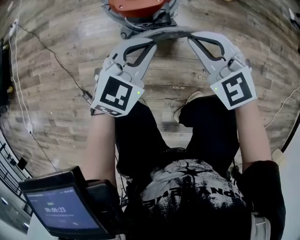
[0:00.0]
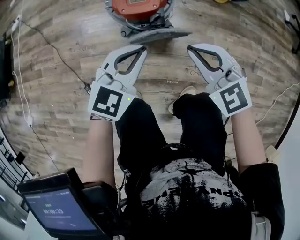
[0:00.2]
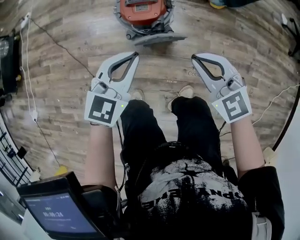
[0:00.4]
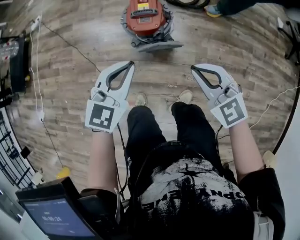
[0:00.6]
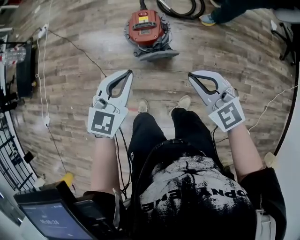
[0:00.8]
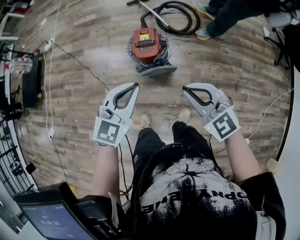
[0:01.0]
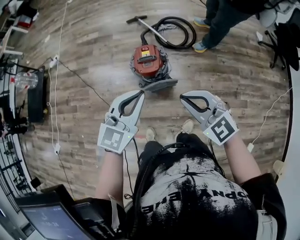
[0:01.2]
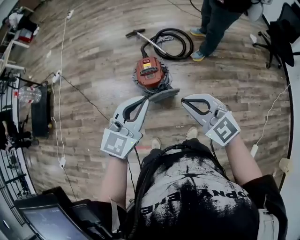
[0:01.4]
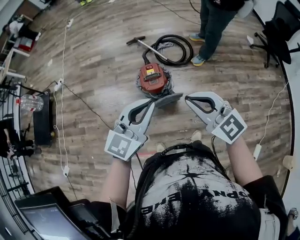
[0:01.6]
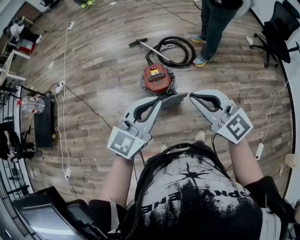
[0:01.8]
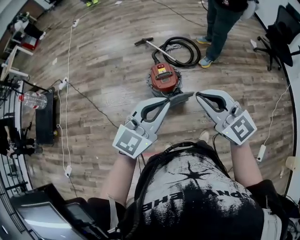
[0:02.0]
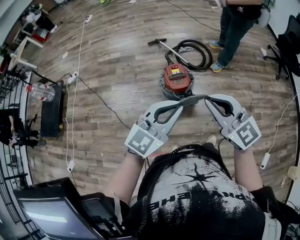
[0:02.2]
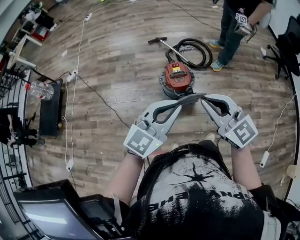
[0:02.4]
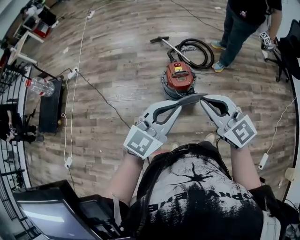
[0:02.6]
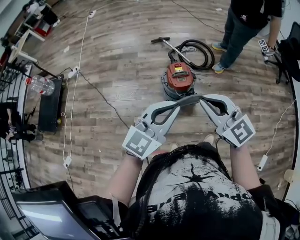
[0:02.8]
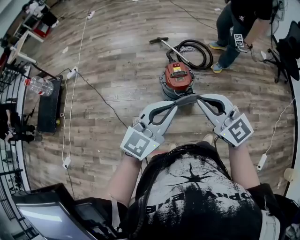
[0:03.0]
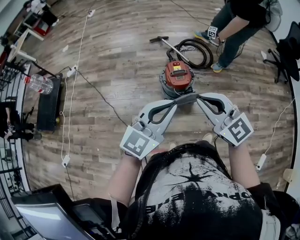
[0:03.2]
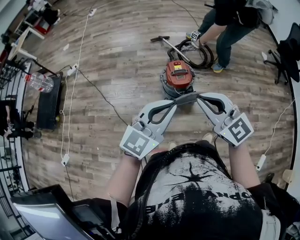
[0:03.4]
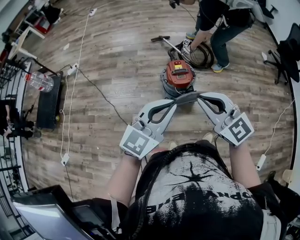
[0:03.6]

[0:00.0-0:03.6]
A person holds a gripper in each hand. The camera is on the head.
0.0 to 1.8 s: Both grippers move upward, about 60 cm. The right gripper tips its fingers upward by some 30 degrees. Meanwhile the left gripper points its fingers about 30 degrees further upward.
1.8 to 3.6 s: The grippers both shift to the left and backward by some 15 cm.

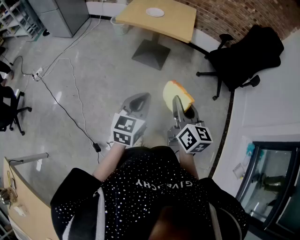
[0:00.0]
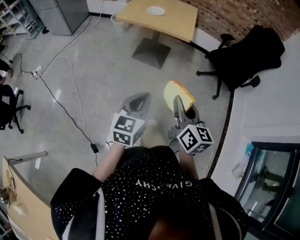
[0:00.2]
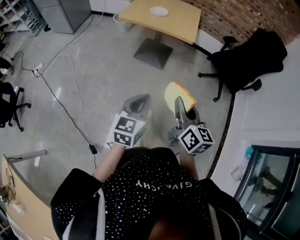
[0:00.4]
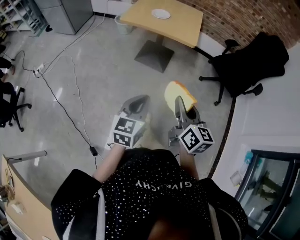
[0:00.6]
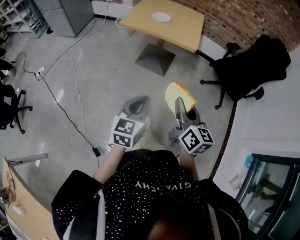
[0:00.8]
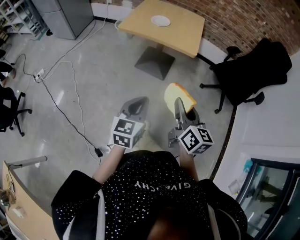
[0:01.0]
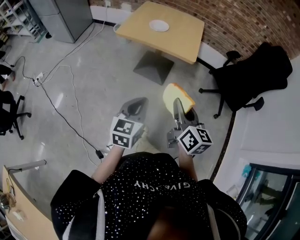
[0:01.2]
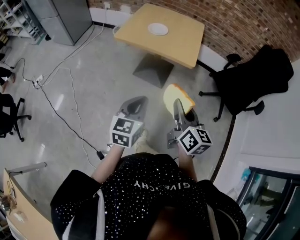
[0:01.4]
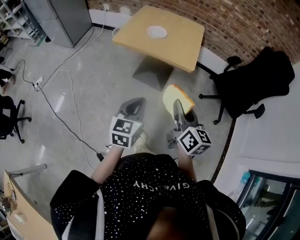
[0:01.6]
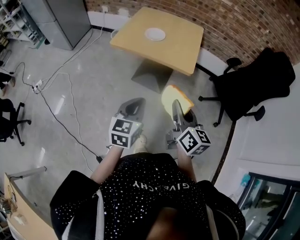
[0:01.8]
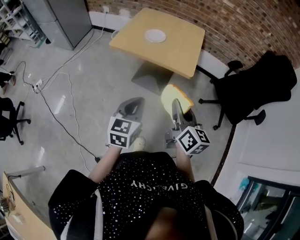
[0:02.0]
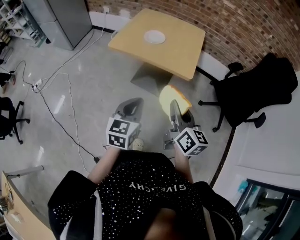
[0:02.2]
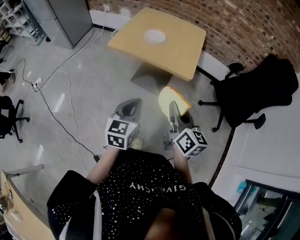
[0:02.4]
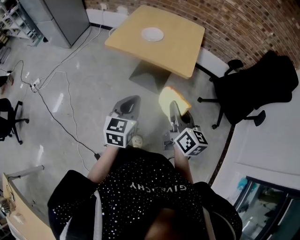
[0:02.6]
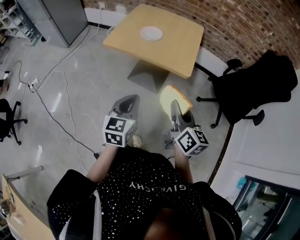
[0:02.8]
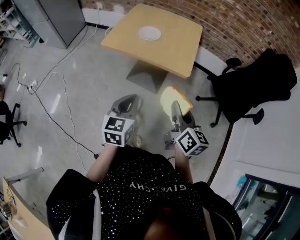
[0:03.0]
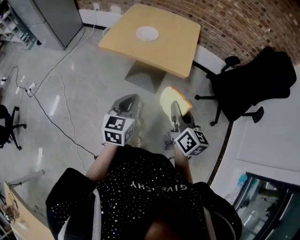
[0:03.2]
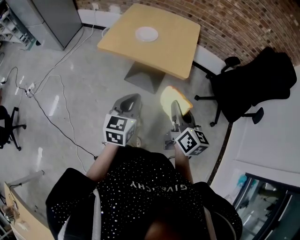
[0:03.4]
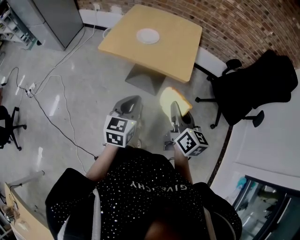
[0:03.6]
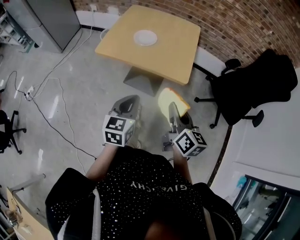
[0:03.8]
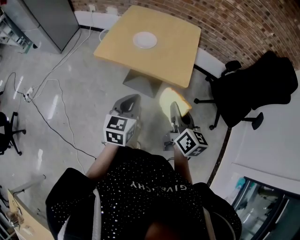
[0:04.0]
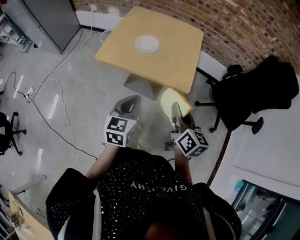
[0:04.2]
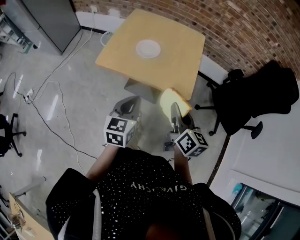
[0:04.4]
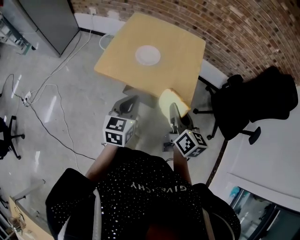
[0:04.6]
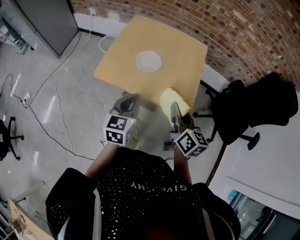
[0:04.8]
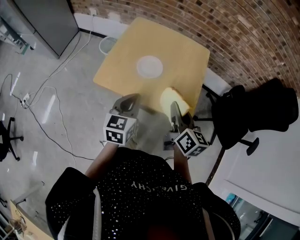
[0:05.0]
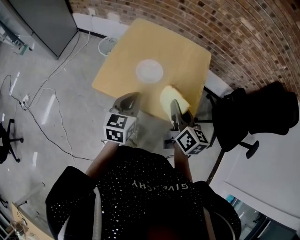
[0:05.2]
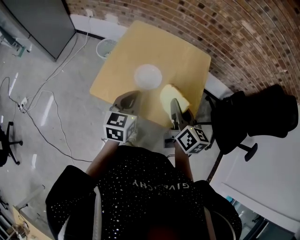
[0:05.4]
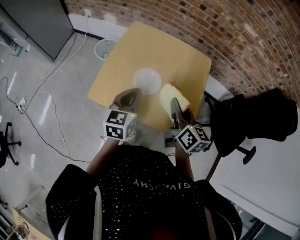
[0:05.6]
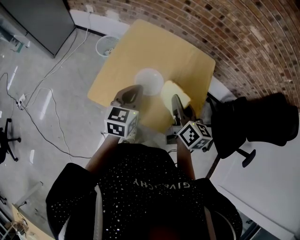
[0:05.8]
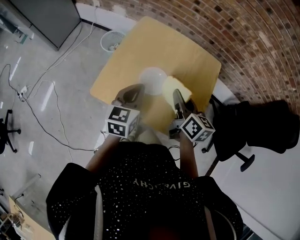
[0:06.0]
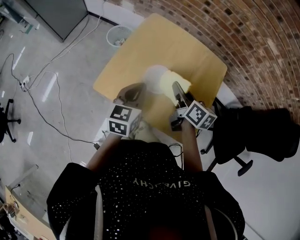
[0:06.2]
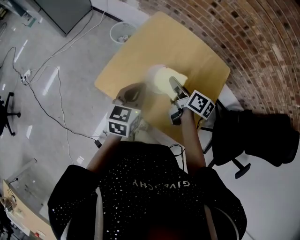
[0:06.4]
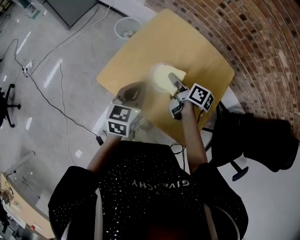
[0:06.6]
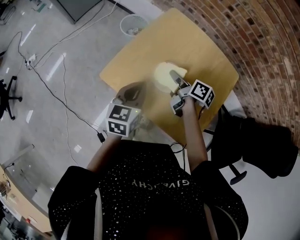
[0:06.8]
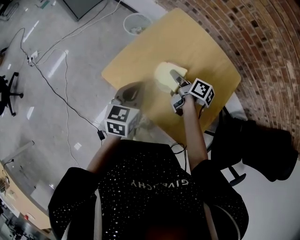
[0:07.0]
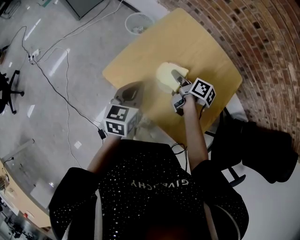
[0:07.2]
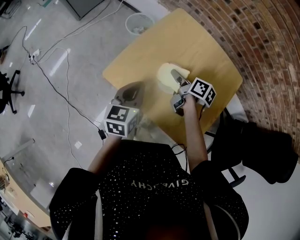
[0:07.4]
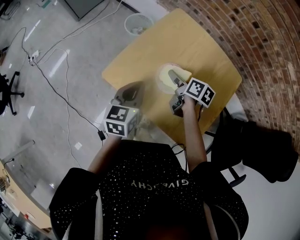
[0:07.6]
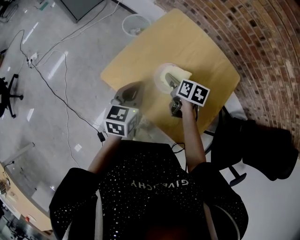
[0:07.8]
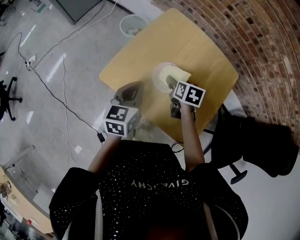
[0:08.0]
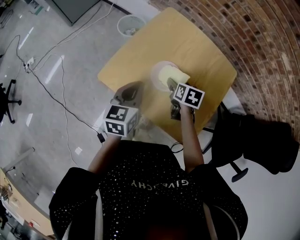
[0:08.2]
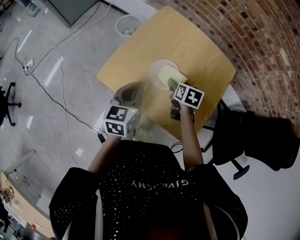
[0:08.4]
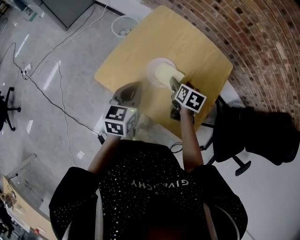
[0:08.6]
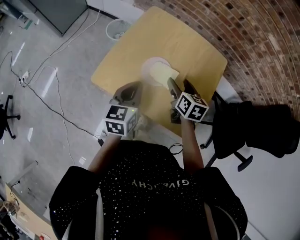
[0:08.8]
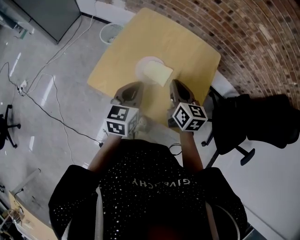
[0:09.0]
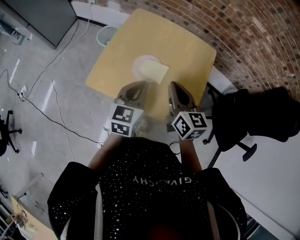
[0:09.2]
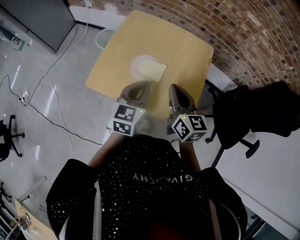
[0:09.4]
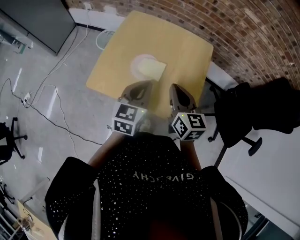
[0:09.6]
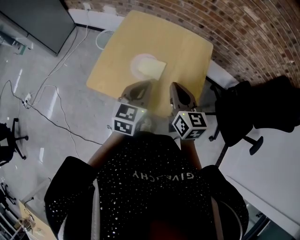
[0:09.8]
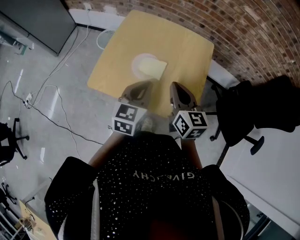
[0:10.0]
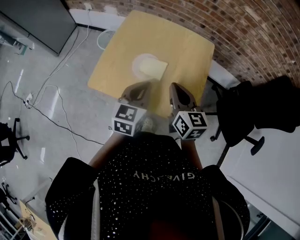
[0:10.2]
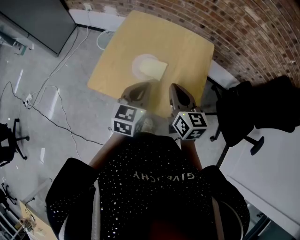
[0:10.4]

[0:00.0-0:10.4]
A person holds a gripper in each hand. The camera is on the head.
0.0 to 1.4 s: The grippers both shift forward by roughly 20 cm.
1.4 to 3.0 s: Both grippers travel together forward, approximately 10 cm.
3.0 to 4.4 s: Both grippers move forward, about 15 cm.
4.4 to 6.0 s: Both grippers travel together forward, approximately 30 cm.
6.0 to 7.4 s: The left gripper is displaced to the left by roughly 5 cm. Meanwhile the right gripper travels downward, forward and to the left by approximately 20 cm, and rotates approximately 40 degrees.
7.4 to 9.0 s: The right gripper is displaced backward, upward and to the right by about 15 cm, changes its angle by about 50 degrees, and opens, then closes again, while the left gripper goes about 5 cm to the right.
9.0 to 10.4 s: The left gripper goes approximately 5 cm to the right; the right gripper travels backward by roughly 5 cm.

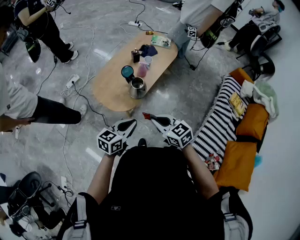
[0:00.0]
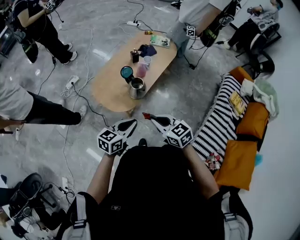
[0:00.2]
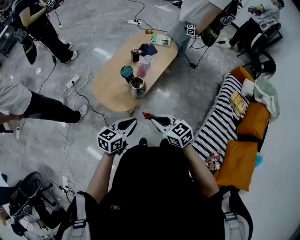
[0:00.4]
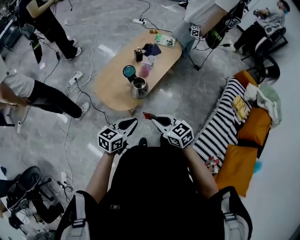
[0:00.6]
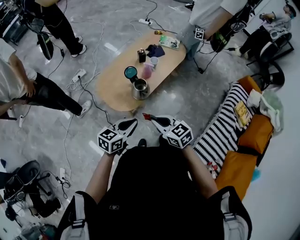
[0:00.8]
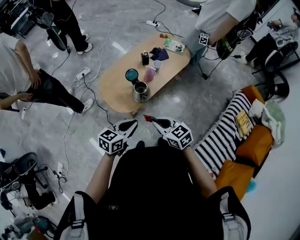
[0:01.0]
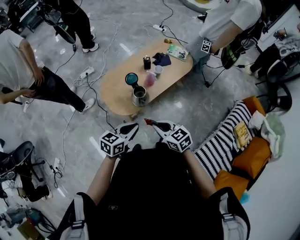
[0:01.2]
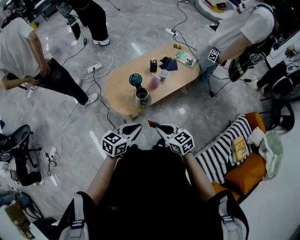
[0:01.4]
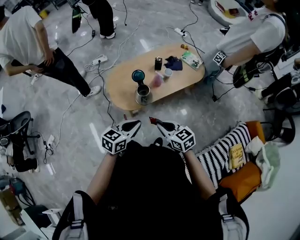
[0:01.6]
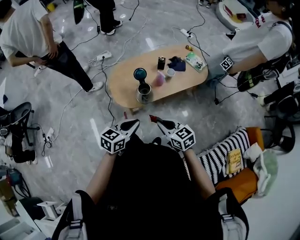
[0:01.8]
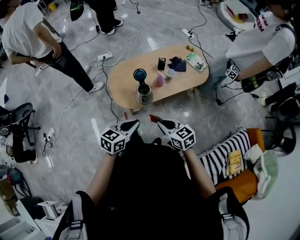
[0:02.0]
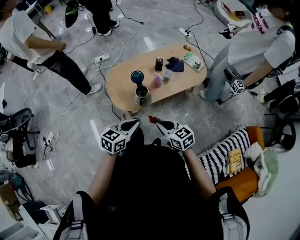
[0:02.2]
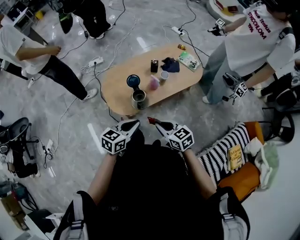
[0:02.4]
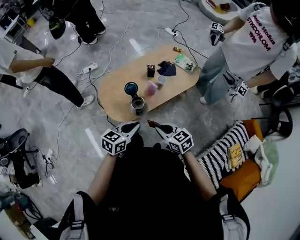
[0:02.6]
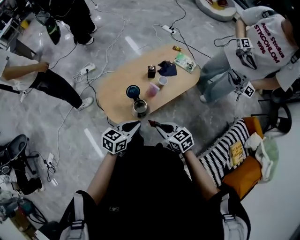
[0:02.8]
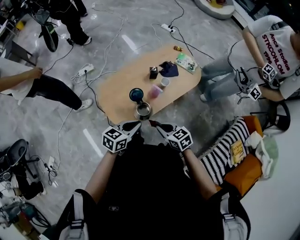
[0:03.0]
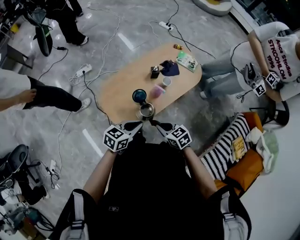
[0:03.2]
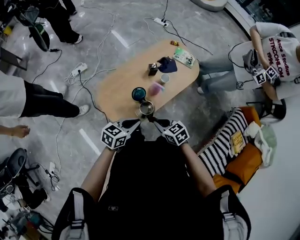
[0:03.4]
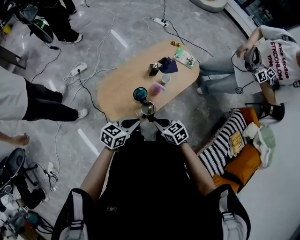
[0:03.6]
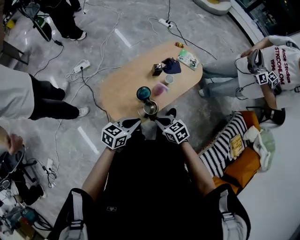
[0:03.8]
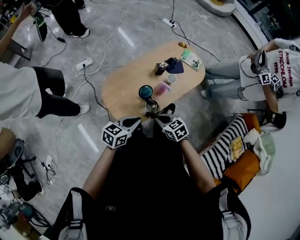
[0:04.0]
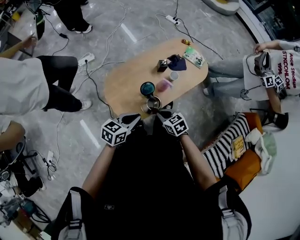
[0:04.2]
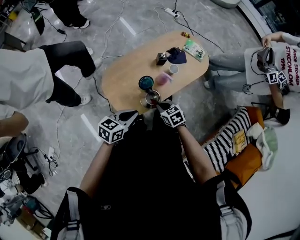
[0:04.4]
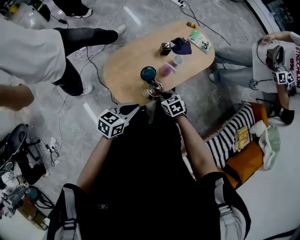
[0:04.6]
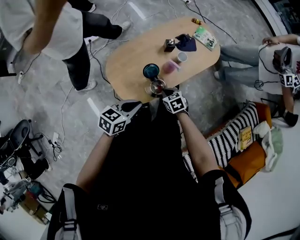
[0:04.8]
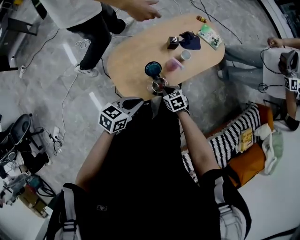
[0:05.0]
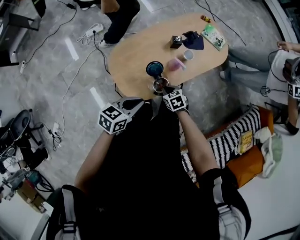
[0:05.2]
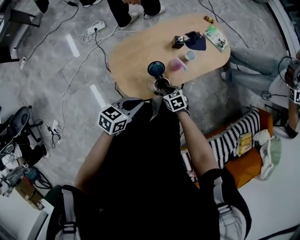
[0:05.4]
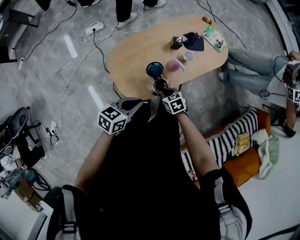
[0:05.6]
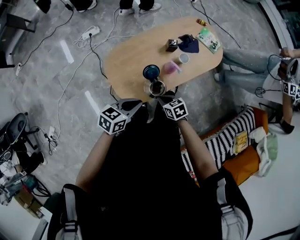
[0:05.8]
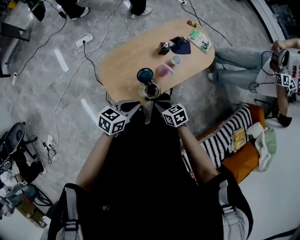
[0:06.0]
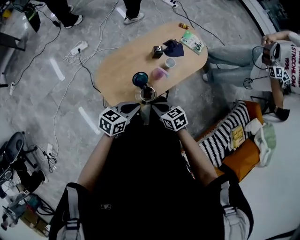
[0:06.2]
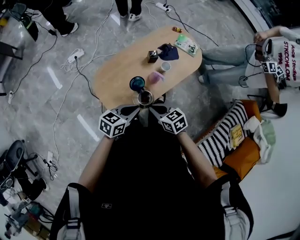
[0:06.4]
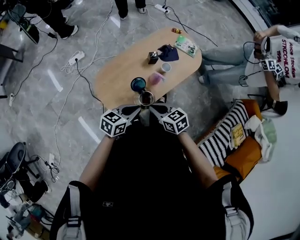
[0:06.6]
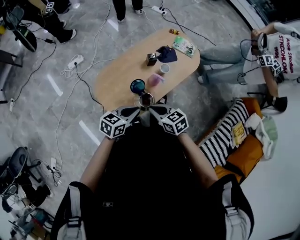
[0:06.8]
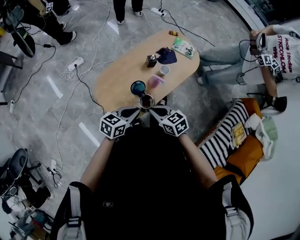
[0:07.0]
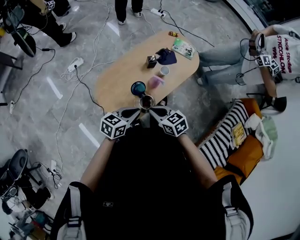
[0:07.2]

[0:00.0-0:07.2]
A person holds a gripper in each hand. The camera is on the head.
0.0 to 1.4 s: The right gripper travels to the right and forward by approximately 15 cm. The left gripper is displaced to the right by some 15 cm.
1.4 to 2.8 s: The grippers both shift forward by approximately 15 cm.
2.8 to 4.4 s: The left gripper travels to the left by some 10 cm. Meanwhile the right gripper moves downward, forward and to the left, approximately 15 cm.
4.4 to 5.8 s: The right gripper shifts some 5 cm downward.
5.8 to 7.2 s: The right gripper heads upward, covering some 15 cm.

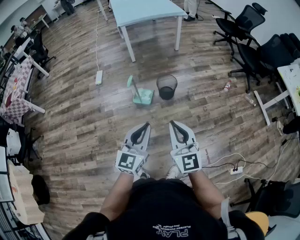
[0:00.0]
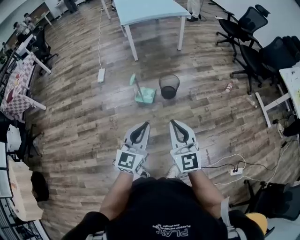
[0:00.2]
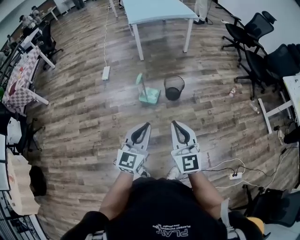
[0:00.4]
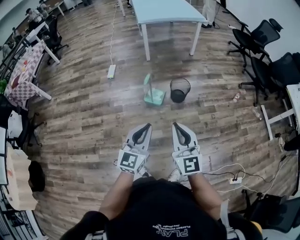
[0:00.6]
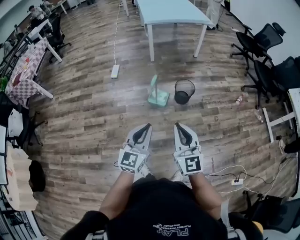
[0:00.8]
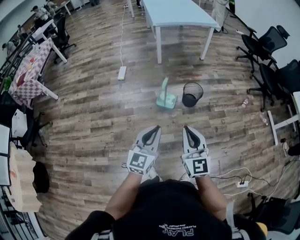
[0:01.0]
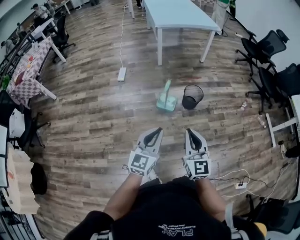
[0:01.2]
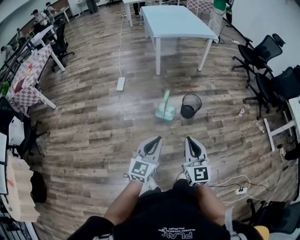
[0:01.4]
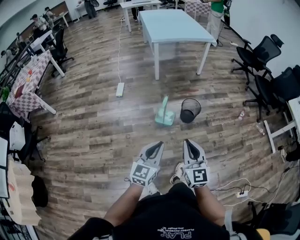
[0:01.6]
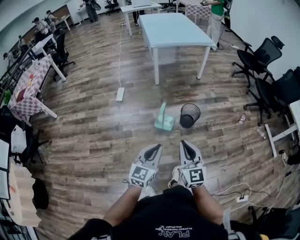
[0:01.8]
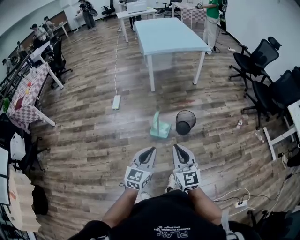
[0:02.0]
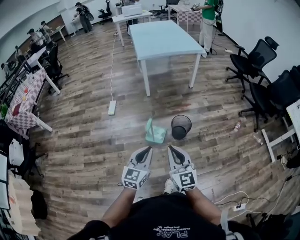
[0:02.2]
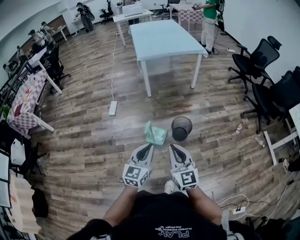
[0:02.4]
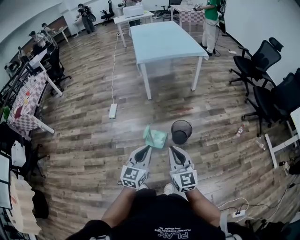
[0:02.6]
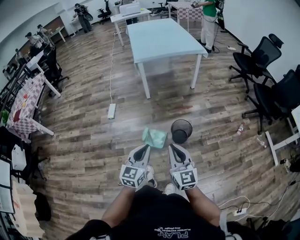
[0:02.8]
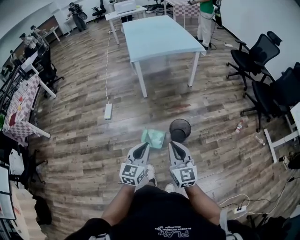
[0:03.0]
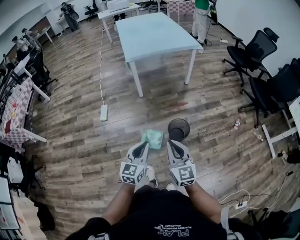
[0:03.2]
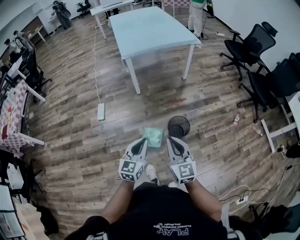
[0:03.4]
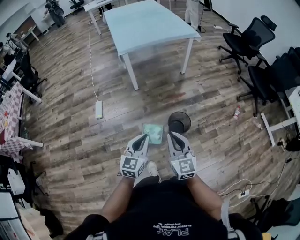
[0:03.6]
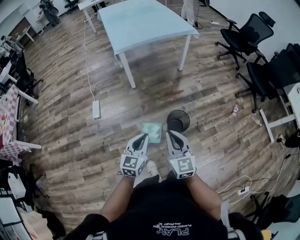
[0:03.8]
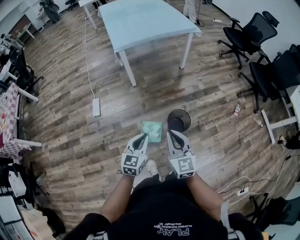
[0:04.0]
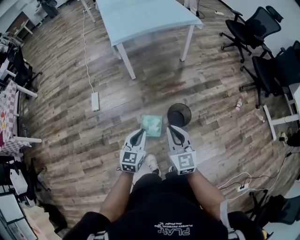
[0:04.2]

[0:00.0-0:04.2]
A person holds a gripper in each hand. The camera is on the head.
0.0 to 1.4 s: The two grippers go approximately 20 cm to the left.
1.4 to 2.8 s: The two grippers go roughly 25 cm forward and to the right.
2.8 to 4.2 s: The right gripper moves forward, roughly 20 cm. The left gripper travels forward and downward by roughly 25 cm.
